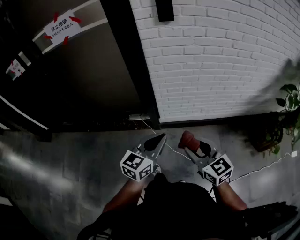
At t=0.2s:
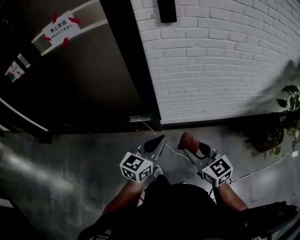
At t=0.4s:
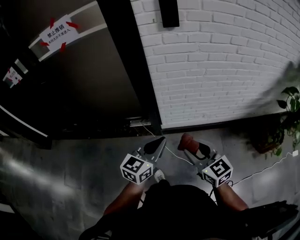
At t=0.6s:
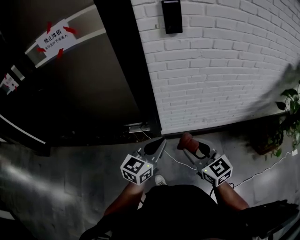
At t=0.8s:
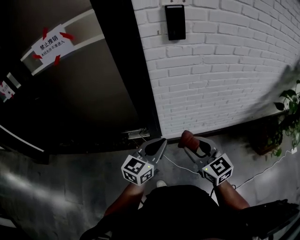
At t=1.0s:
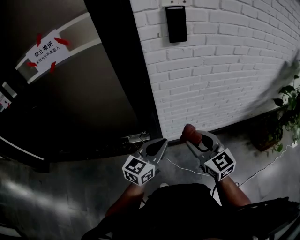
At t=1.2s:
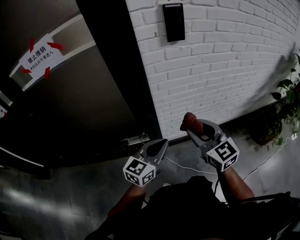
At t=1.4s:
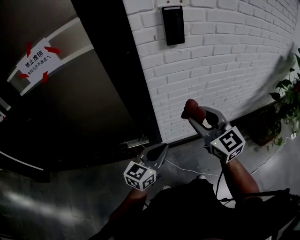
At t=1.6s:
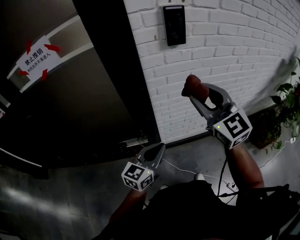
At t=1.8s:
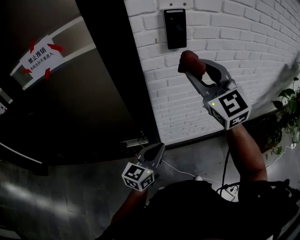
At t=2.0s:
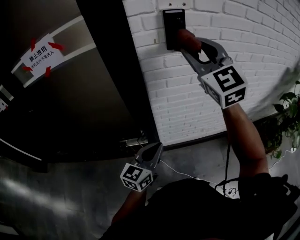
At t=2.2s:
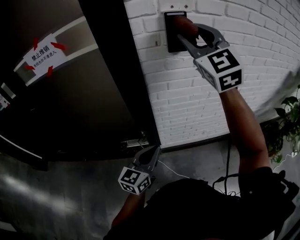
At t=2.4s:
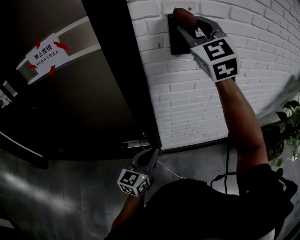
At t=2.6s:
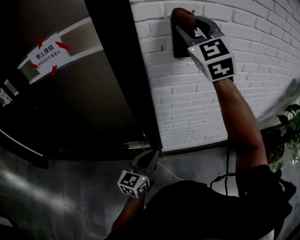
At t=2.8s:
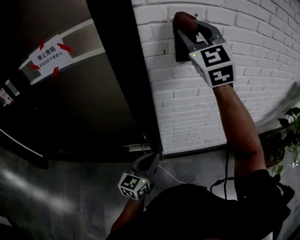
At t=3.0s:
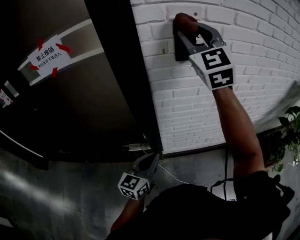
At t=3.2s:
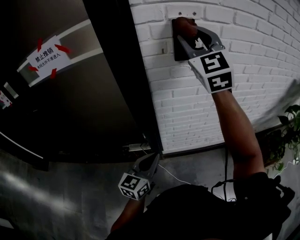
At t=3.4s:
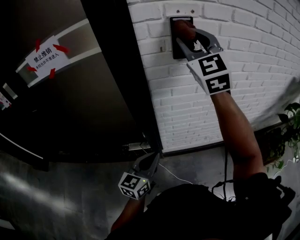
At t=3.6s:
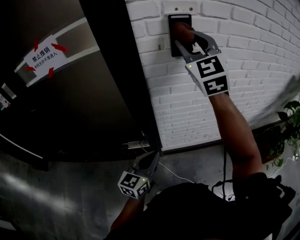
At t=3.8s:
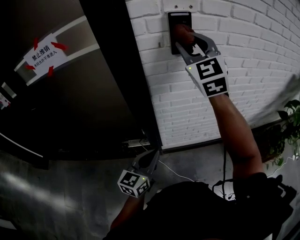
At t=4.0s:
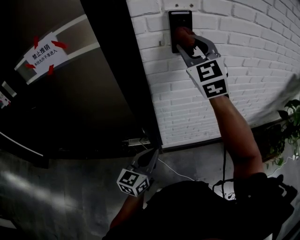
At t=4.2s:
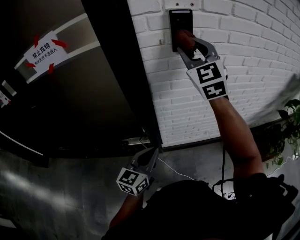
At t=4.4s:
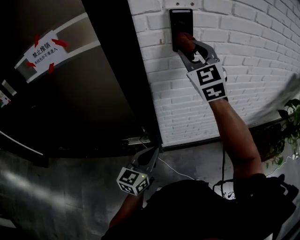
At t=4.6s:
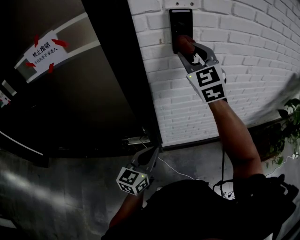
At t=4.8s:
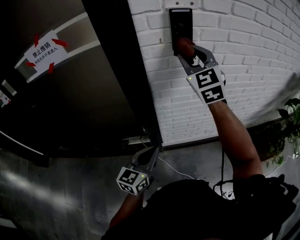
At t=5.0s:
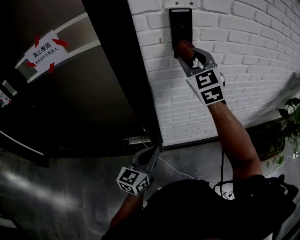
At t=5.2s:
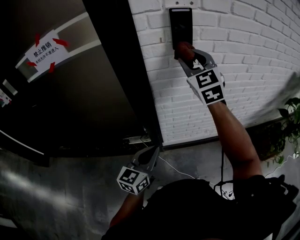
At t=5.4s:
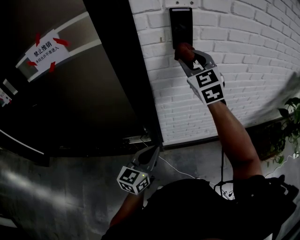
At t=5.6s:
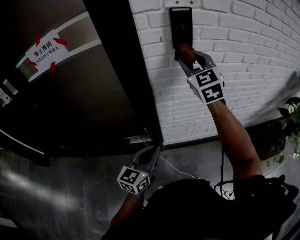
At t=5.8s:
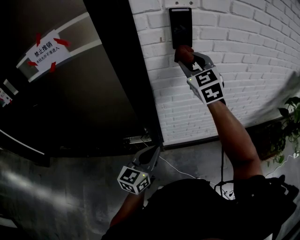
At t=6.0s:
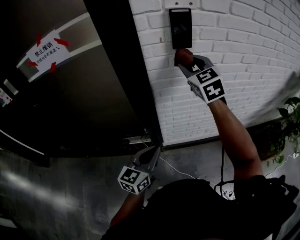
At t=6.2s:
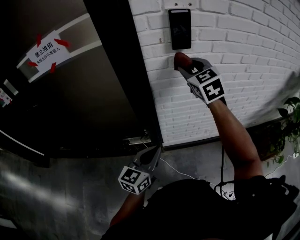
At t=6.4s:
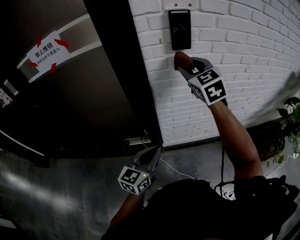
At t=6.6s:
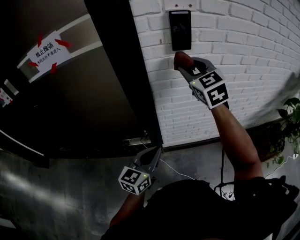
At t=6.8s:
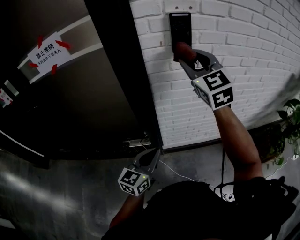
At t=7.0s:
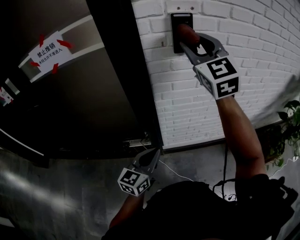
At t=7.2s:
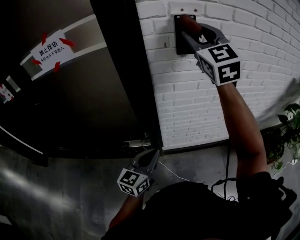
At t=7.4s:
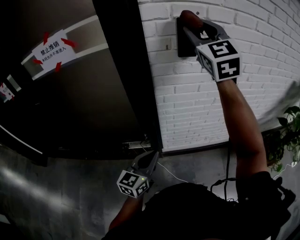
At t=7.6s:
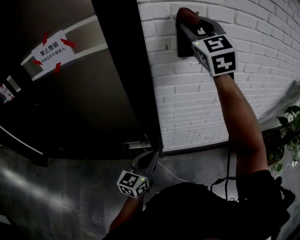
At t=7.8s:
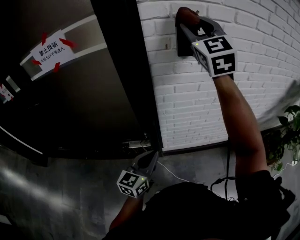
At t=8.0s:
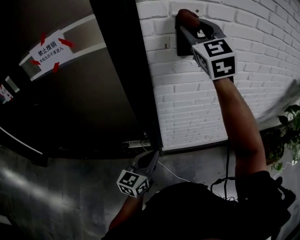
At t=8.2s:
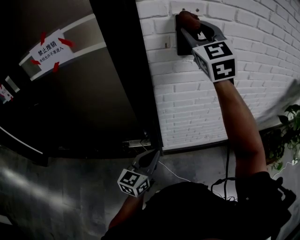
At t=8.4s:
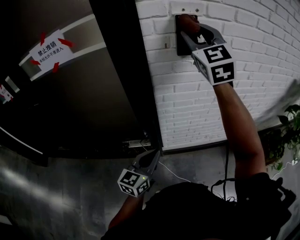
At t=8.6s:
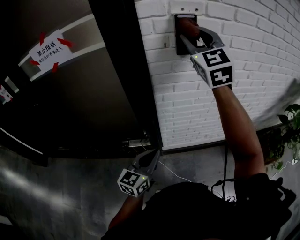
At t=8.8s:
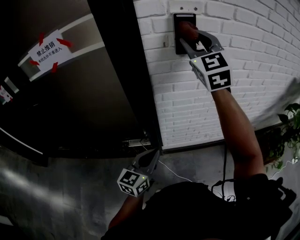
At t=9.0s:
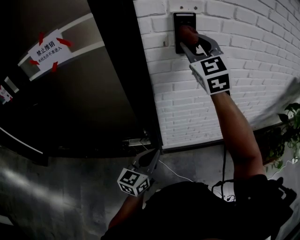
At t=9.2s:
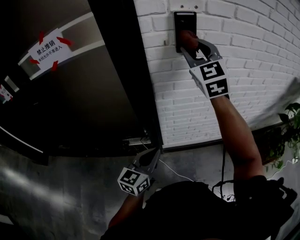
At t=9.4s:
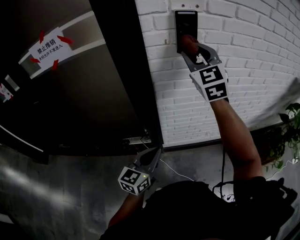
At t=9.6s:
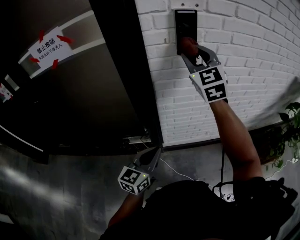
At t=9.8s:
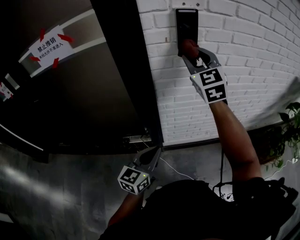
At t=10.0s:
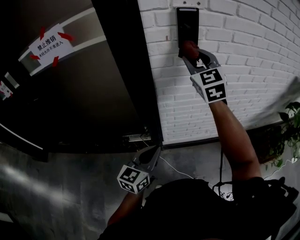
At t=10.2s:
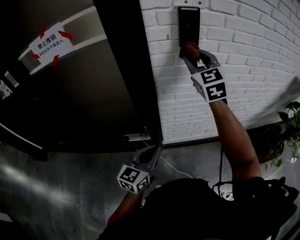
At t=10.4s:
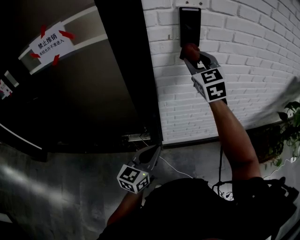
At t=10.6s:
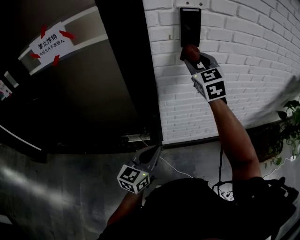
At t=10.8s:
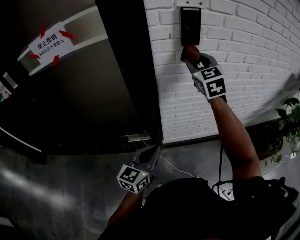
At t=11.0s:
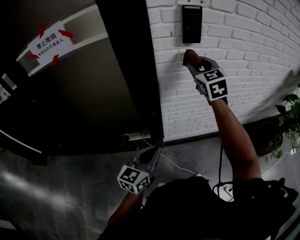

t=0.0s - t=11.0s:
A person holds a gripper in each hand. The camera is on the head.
t=0.0s - t=1.6s: The right gripper heads forward and upward, covering roughly 35 cm, and rotates approximately 30 degrees, while the left gripper travels forward and to the left by about 20 cm.
t=1.6s - t=3.2s: The right gripper heads upward and forward, covering roughly 25 cm, and swivels roughly 20 degrees.
t=3.2s - t=4.8s: The right gripper goes some 10 cm downward.
t=4.8s - t=6.2s: The right gripper goes some 5 cm downward.
t=6.2s - t=7.8s: The right gripper moves upward, roughly 20 cm, and swivels approximately 30 degrees.
t=7.8s - t=9.4s: The right gripper is displaced downward by some 10 cm.
t=9.4s - t=11.0s: The right gripper shifts some 10 cm downward.

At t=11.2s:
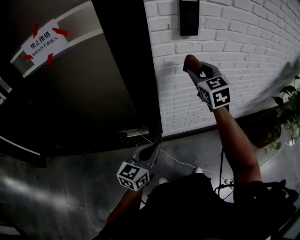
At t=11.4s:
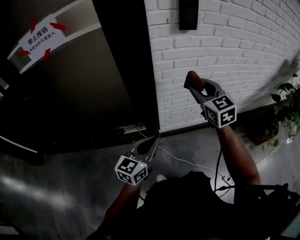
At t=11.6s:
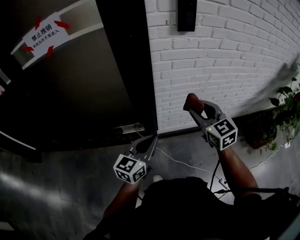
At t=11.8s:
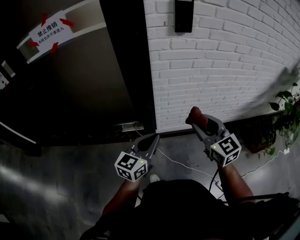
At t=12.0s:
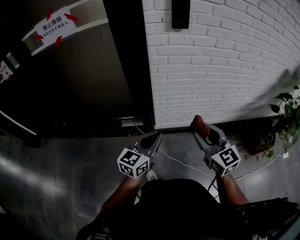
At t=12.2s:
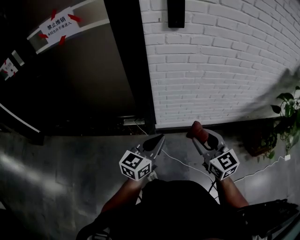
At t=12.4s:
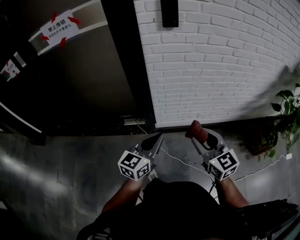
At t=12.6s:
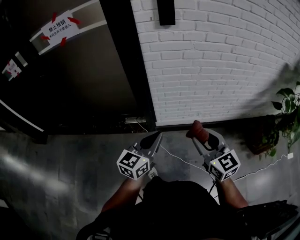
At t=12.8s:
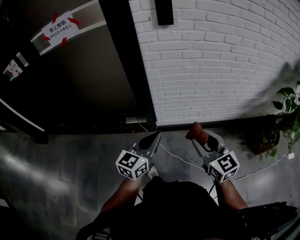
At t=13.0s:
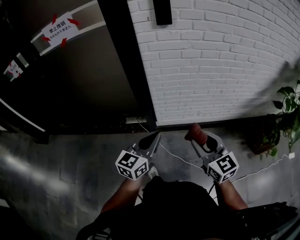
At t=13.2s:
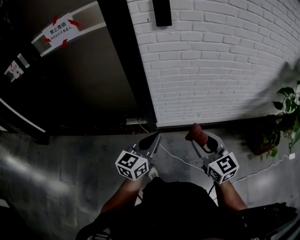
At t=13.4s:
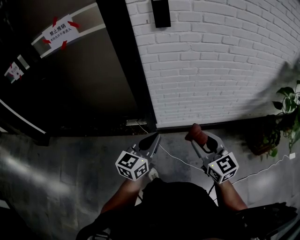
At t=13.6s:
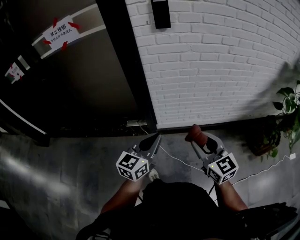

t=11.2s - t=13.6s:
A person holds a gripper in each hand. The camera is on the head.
t=11.2s - t=12.4s: The left gripper heads to the right and backward, covering approximately 15 cm, while the right gripper travels backward by some 35 cm, and turns by some 20 degrees.
t=12.4s - t=13.6s: The grippers move only a little.

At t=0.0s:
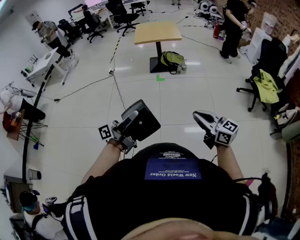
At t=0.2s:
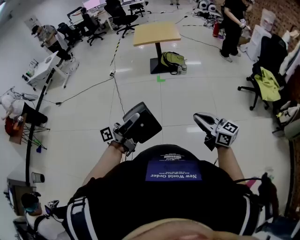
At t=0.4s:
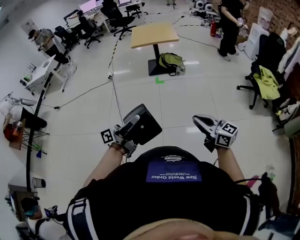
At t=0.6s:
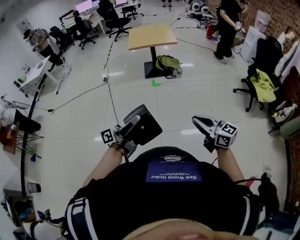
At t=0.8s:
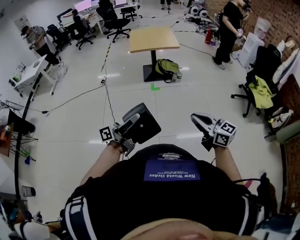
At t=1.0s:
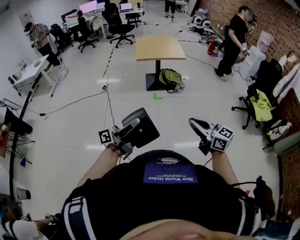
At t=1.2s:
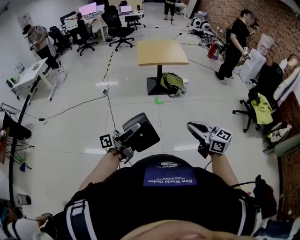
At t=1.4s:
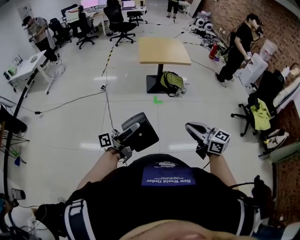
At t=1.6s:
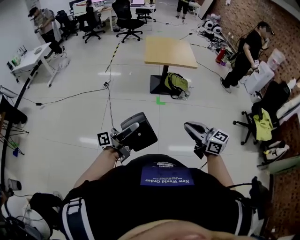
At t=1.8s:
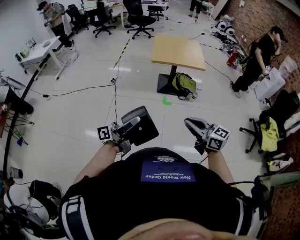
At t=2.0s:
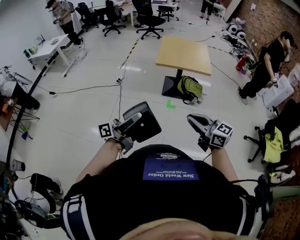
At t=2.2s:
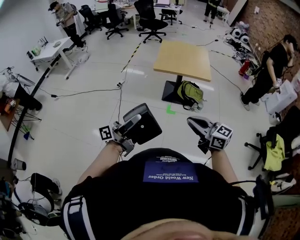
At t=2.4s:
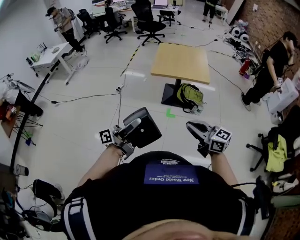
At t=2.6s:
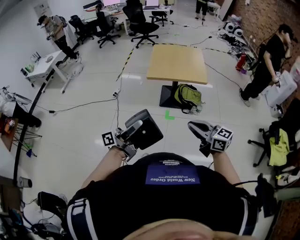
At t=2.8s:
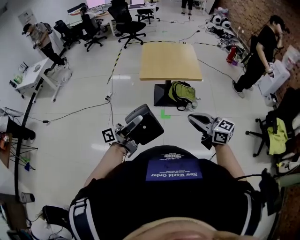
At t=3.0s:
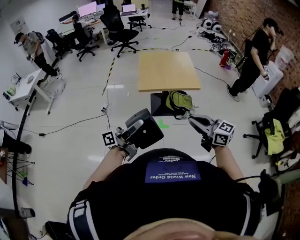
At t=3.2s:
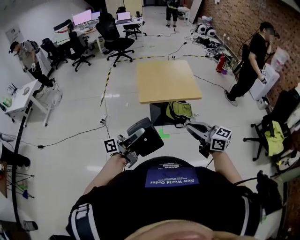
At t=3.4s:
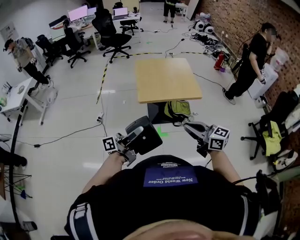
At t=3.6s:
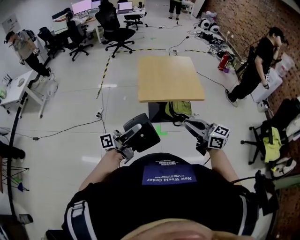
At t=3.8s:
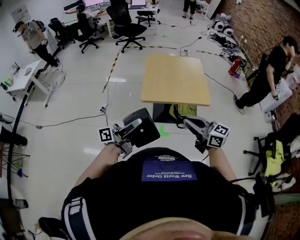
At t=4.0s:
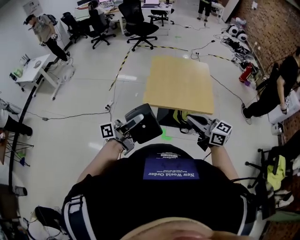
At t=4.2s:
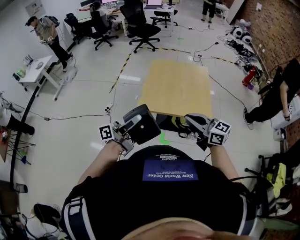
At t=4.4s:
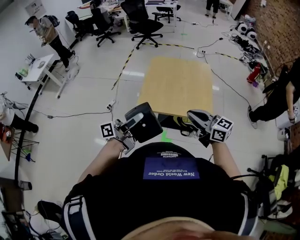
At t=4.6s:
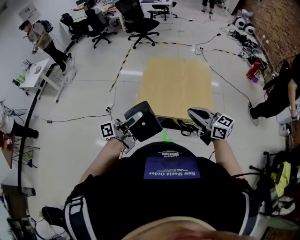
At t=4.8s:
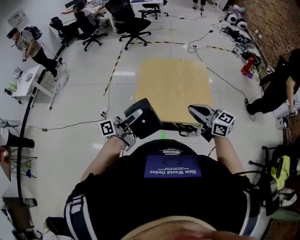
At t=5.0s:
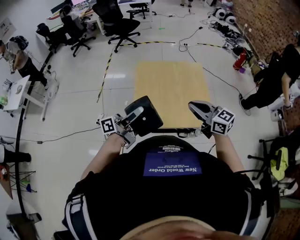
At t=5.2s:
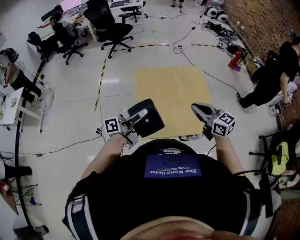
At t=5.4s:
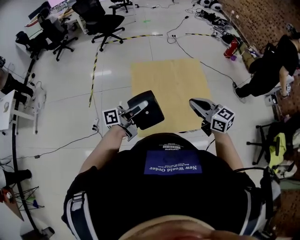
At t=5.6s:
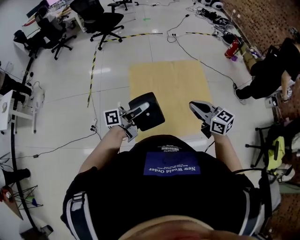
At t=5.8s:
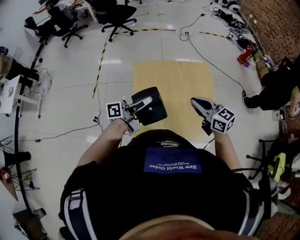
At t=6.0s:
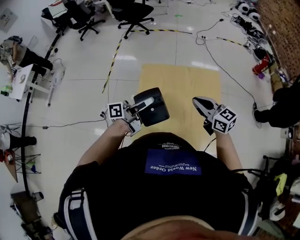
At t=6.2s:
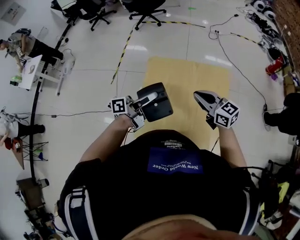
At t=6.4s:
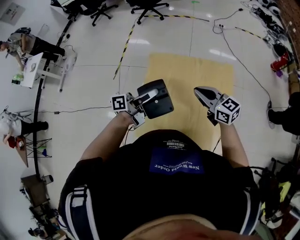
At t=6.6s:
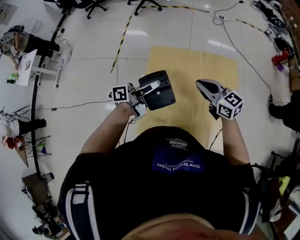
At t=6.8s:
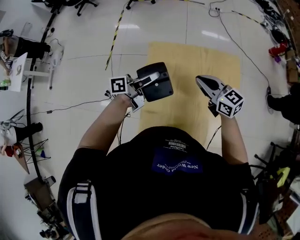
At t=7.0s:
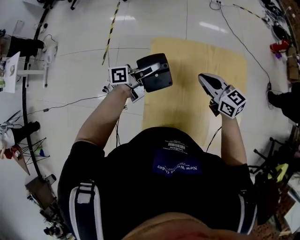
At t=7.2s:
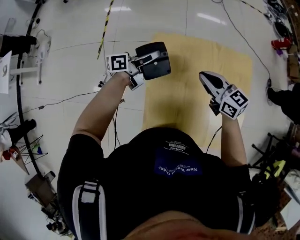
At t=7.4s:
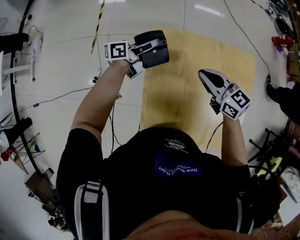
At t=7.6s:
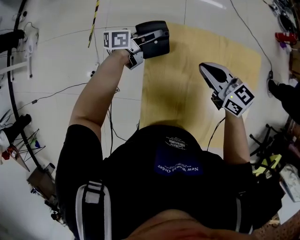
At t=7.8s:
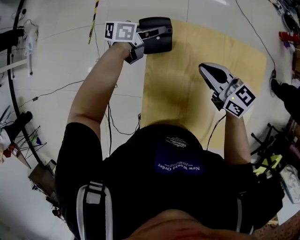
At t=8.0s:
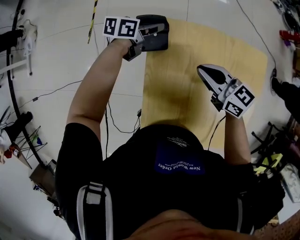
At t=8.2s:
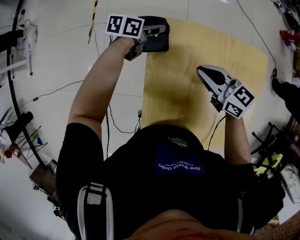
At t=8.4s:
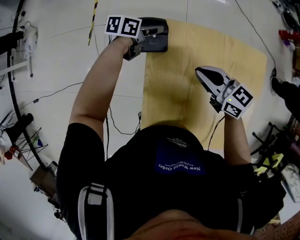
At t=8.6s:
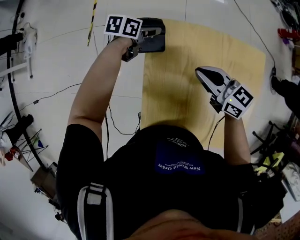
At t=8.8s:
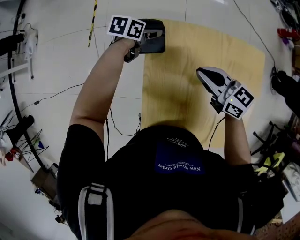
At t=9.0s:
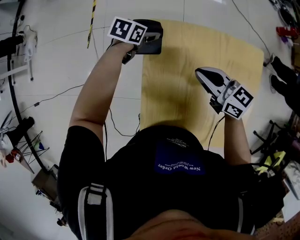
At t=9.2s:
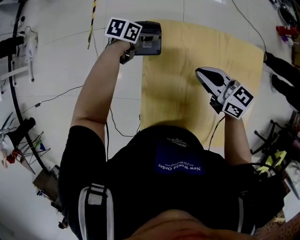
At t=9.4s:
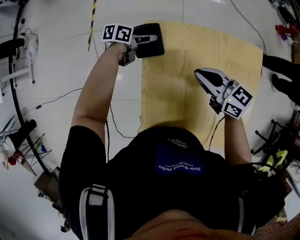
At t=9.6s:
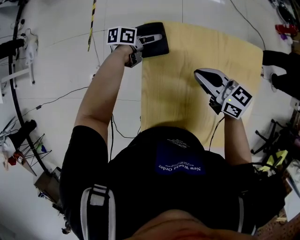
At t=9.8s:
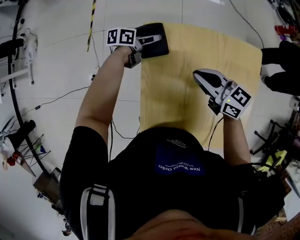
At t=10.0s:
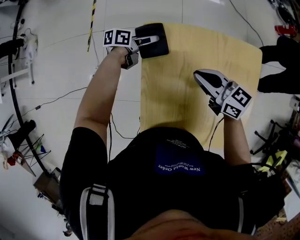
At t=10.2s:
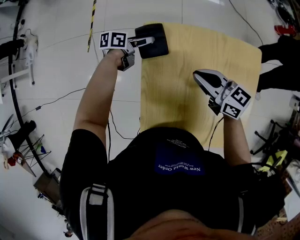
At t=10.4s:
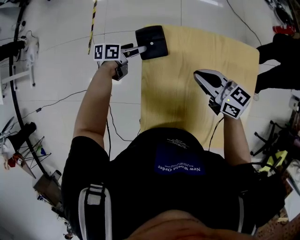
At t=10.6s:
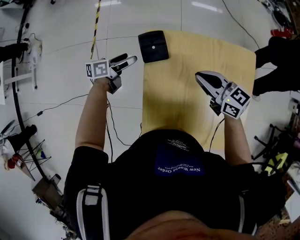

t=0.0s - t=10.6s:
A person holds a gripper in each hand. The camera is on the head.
t=0.0s - t=1.6s: The two grippers go some 35 cm forward and to the left.
t=1.6s - t=3.0s: Both grippers travel together forward, about 35 cm.
t=3.0s - t=4.6s: Both grippers move forward, about 40 cm.
t=4.6s - t=6.0s: The two grippers go about 35 cm forward.
t=6.0s - t=7.6s: The right gripper moves forward, to the left and downward, roughly 30 cm. Meanwhile the left gripper goes approximately 40 cm forward and downward, and turns by approximately 20 degrees.
t=7.6s - t=9.0s: The left gripper heads downward, covering about 5 cm, tips its fingers downward by some 40 degrees, and opens.
t=9.0s - t=10.6s: The left gripper moves approximately 10 cm, and changes its angle by about 40 degrees.
